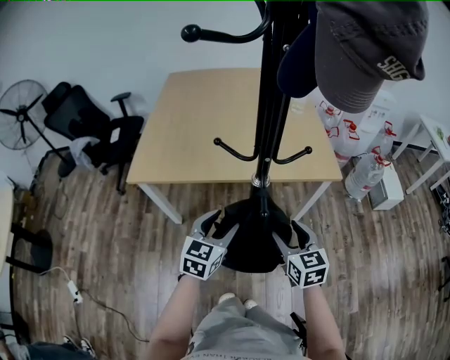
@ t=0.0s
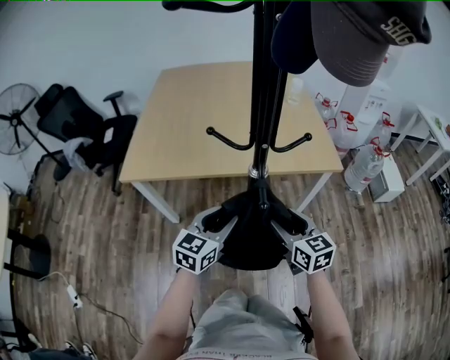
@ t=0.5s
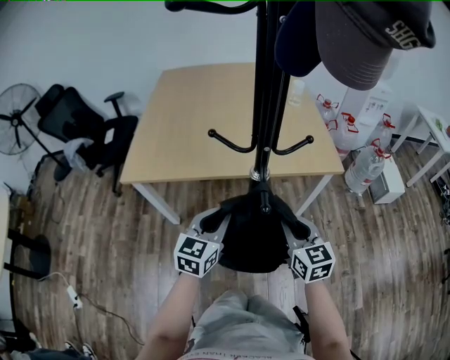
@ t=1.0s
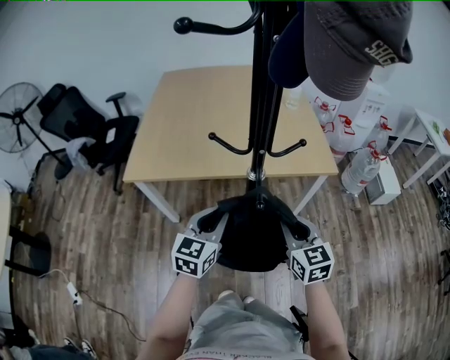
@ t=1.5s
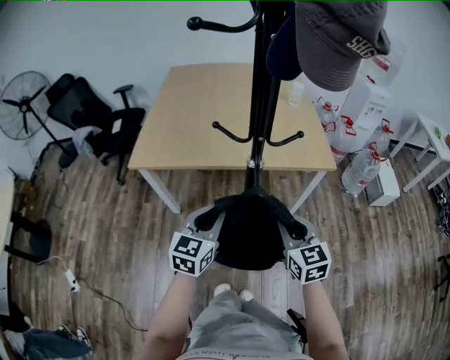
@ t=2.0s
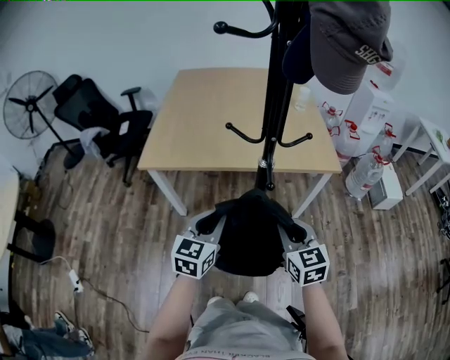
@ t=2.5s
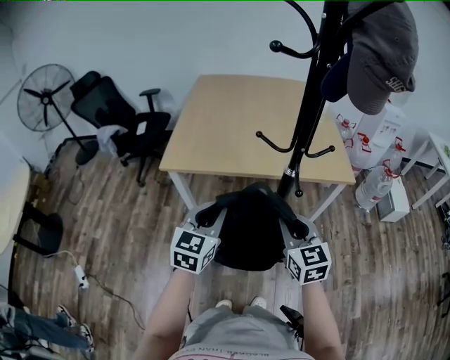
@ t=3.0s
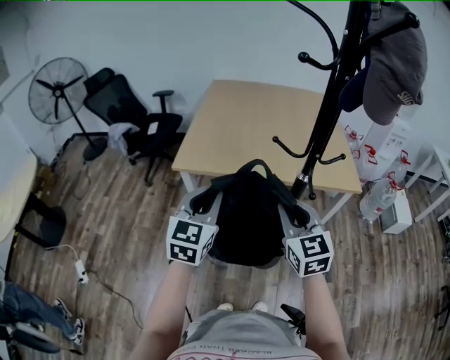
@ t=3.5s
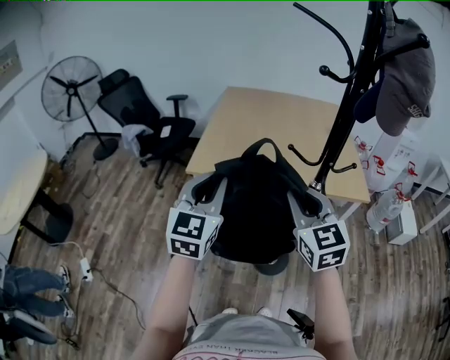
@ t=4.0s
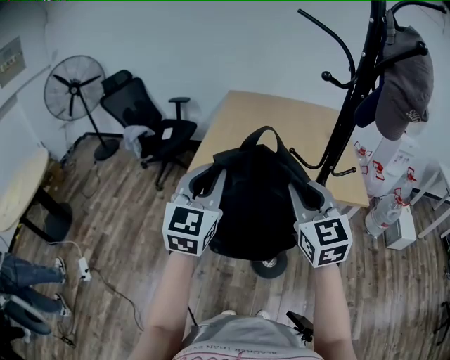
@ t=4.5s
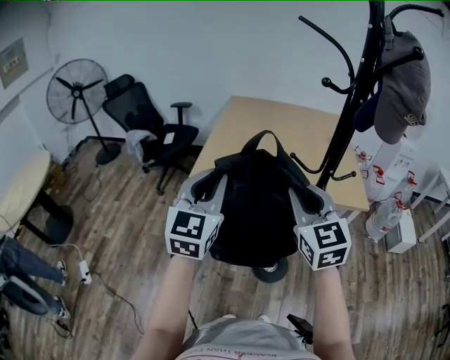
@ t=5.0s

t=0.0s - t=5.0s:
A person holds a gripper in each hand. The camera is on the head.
t=0.0s - t=2.5s: Both grippers travel together backward, roughly 5 cm. The left gripper closes its fingers, while the right gripper closes its fingers.
t=2.5s - t=5.0s: The two grippers go approximately 25 cm upward and to the left. The right gripper rotates some 20 degrees. Meanwhile the left gripper changes its angle by some 30 degrees.

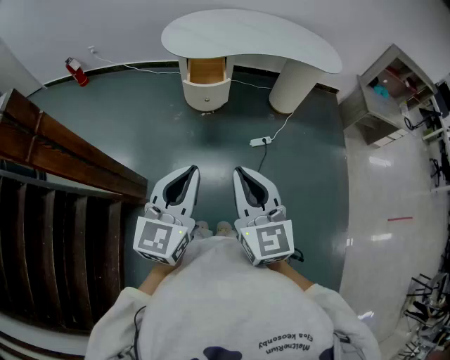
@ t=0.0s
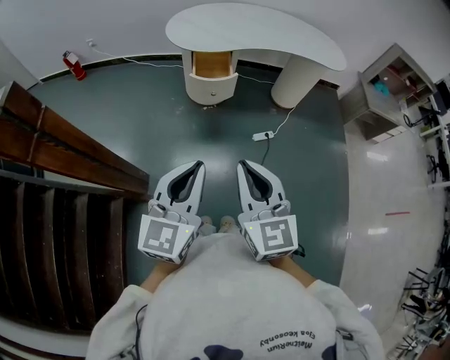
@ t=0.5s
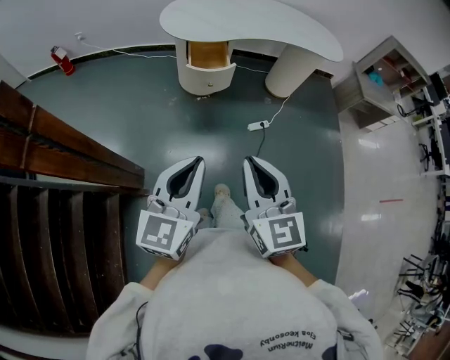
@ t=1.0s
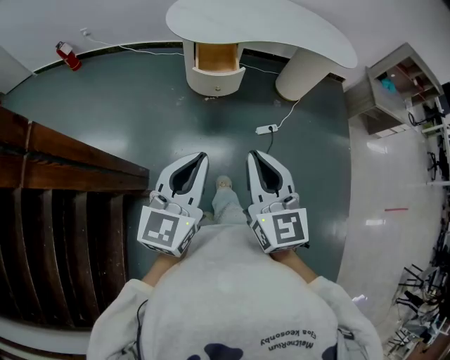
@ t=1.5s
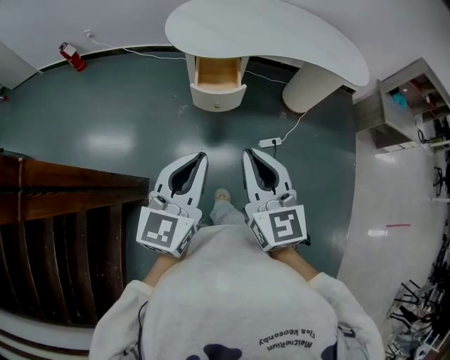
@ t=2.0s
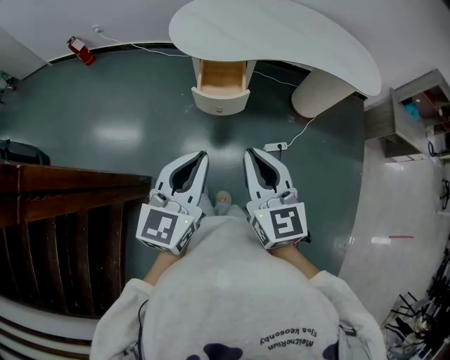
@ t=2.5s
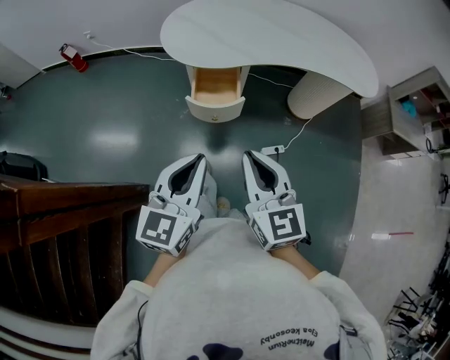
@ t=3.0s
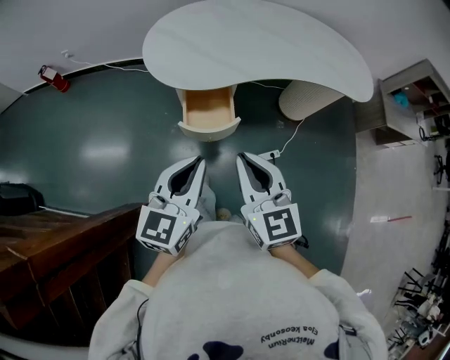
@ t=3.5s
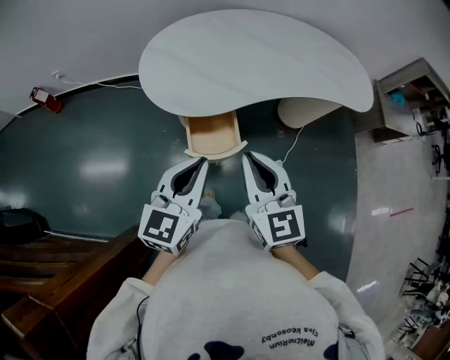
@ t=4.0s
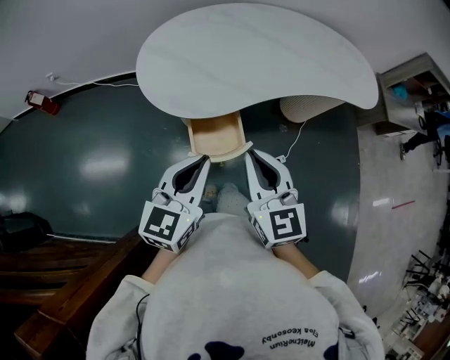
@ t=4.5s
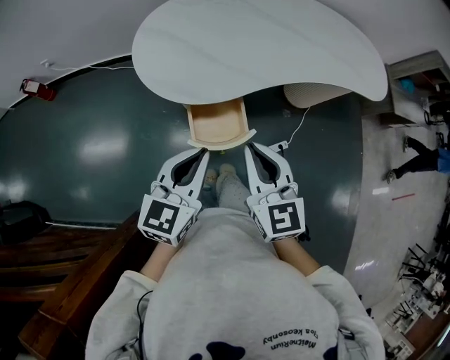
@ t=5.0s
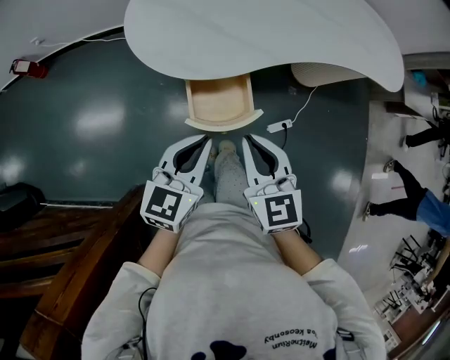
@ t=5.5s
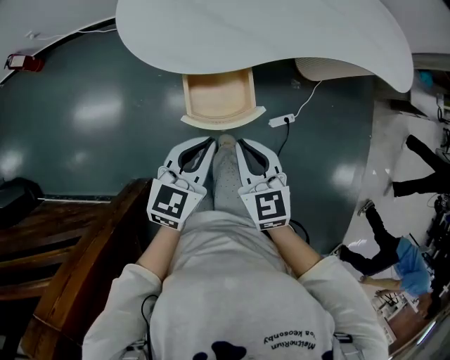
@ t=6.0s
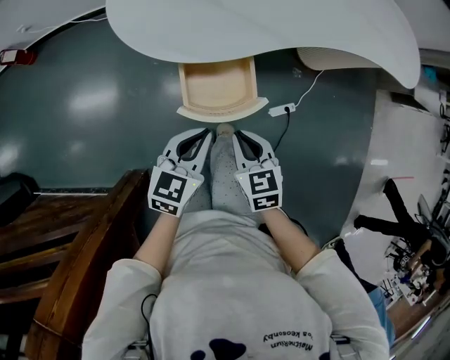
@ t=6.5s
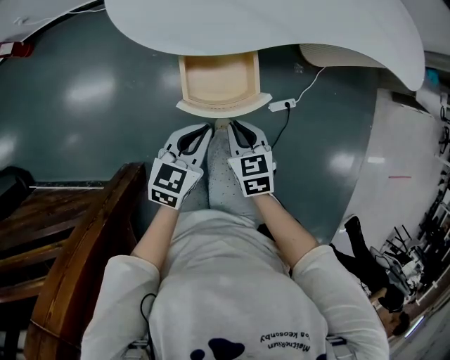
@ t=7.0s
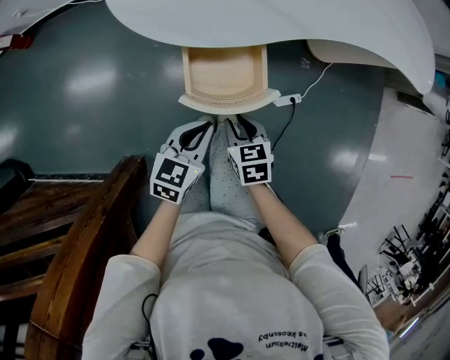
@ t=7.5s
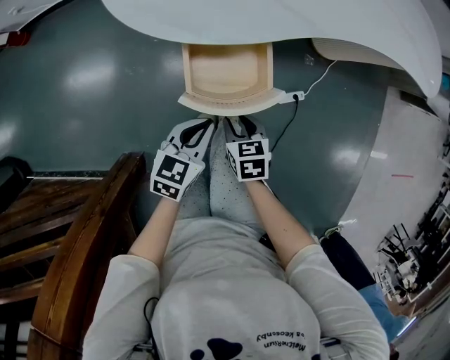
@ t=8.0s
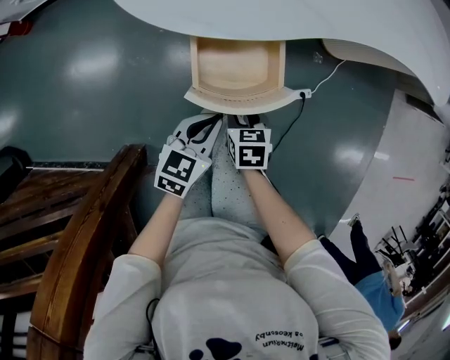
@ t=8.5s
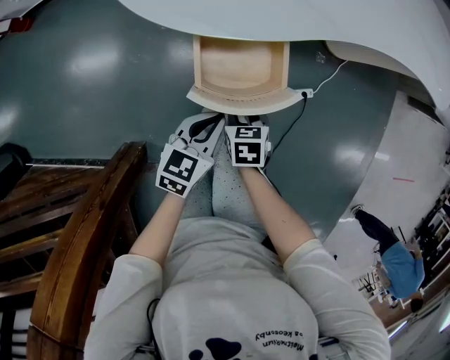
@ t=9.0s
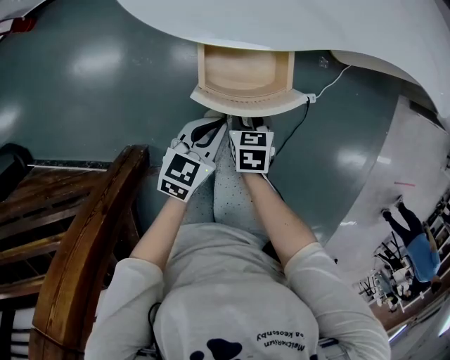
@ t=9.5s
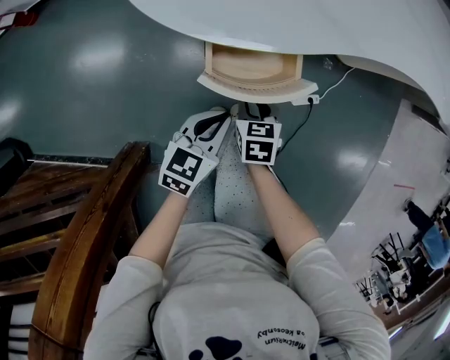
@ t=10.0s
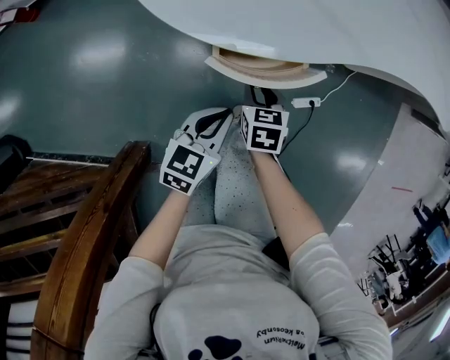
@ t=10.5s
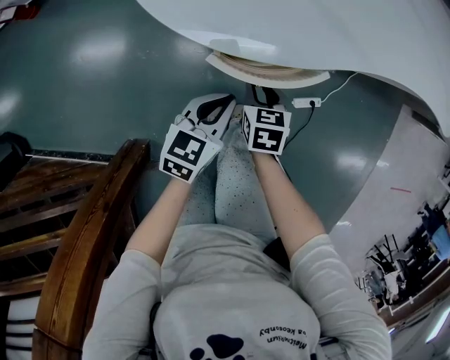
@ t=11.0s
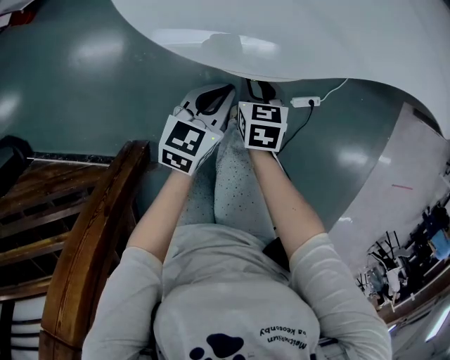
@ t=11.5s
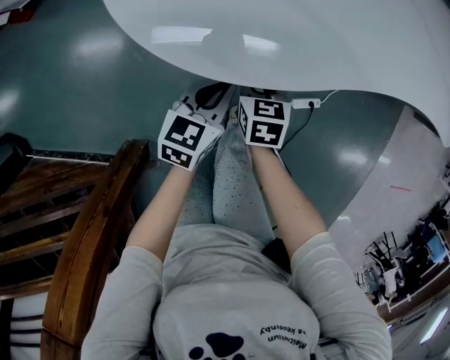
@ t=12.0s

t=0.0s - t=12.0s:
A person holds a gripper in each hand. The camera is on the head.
t=0.0s - t=2.0s: Both grippers move forward, approximately 20 cm.
t=2.0s - t=4.0s: Both grippers move forward, roughly 30 cm.
t=4.0s - t=6.0s: The two grippers go roughly 20 cm downward. The right gripper swivels about 20 degrees.
t=6.0s - t=8.0s: The two grippers go approximately 20 cm downward. The right gripper swivels roughly 30 degrees, and opens its fingers.
t=8.0s - t=10.0s: The right gripper travels forward by approximately 5 cm.
t=10.0s - t=12.0s: Both grippers travel together forward, about 10 cm.

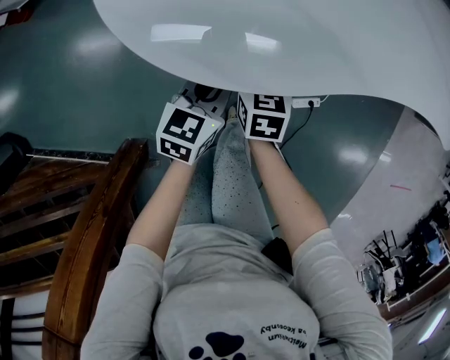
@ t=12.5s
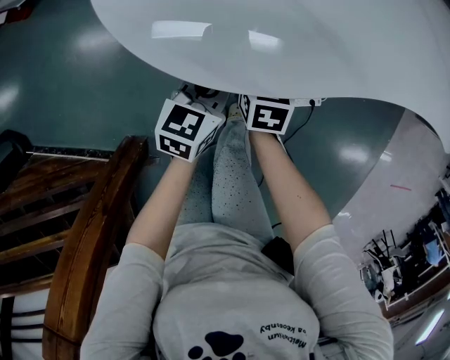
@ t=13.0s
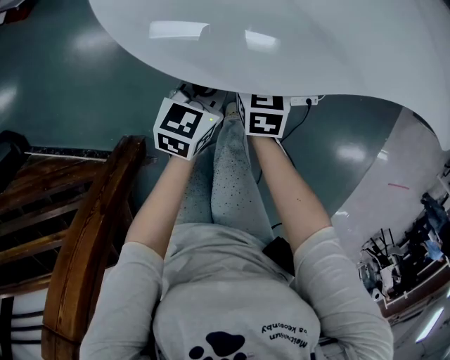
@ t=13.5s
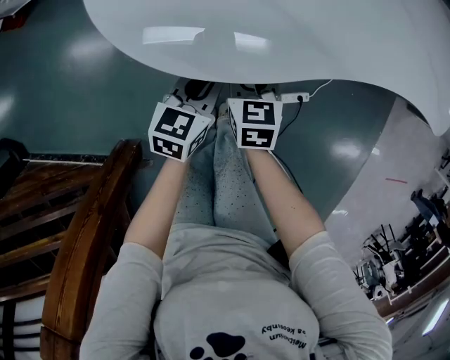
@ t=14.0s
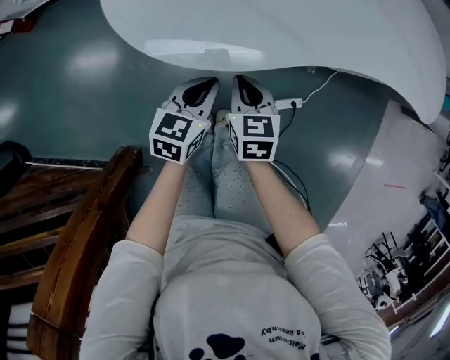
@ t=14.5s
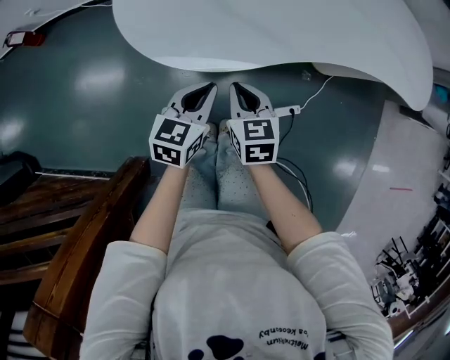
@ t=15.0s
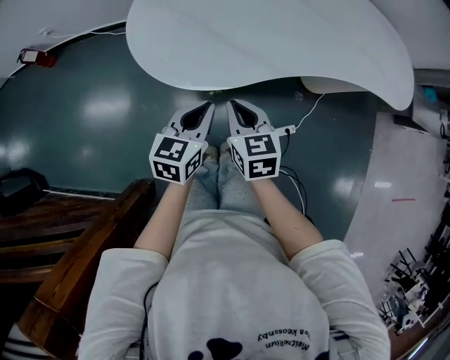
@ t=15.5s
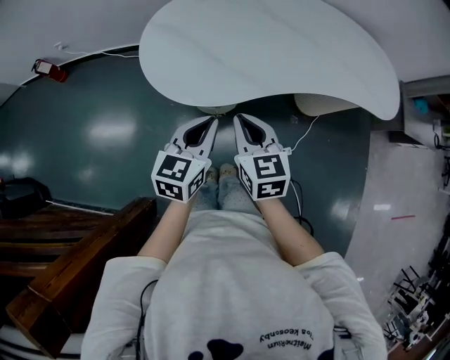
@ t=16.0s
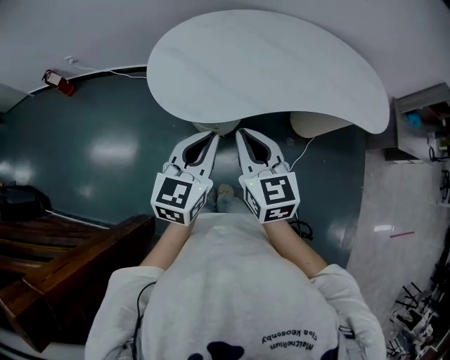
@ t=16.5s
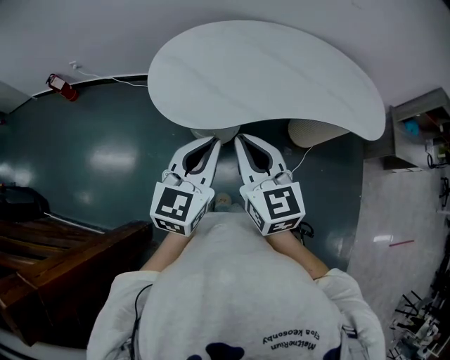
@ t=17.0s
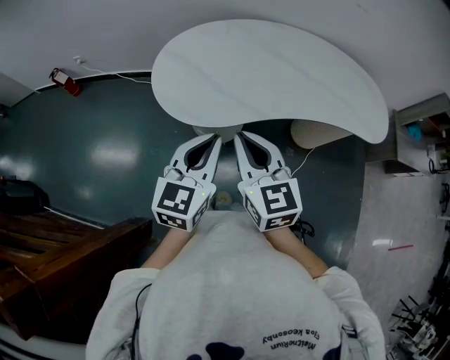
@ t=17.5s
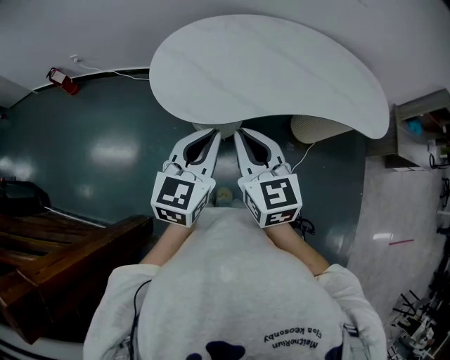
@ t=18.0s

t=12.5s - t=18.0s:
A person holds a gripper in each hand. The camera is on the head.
t=12.5s - t=14.5s: The left gripper heads upward, covering some 5 cm. The right gripper goes some 10 cm upward and backward, and closes.
t=14.5s - t=16.0s: The two grippers go about 25 cm upward.
t=16.0s - t=18.0s: The grippers both shift upward by about 10 cm.

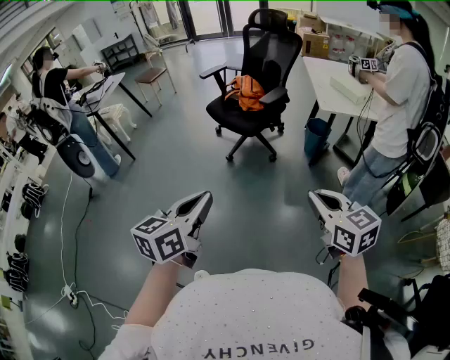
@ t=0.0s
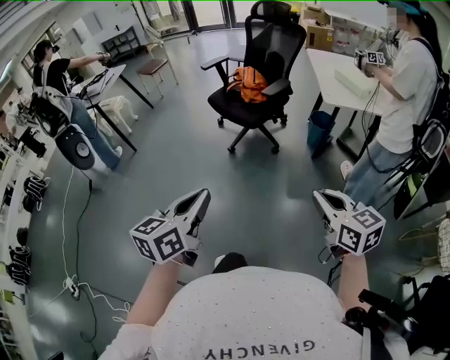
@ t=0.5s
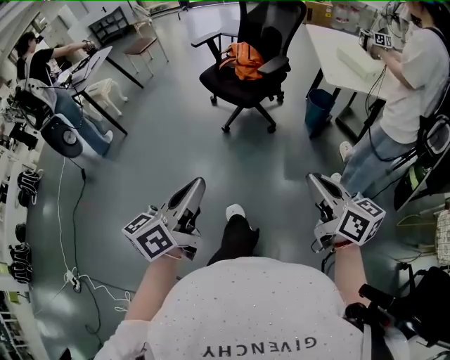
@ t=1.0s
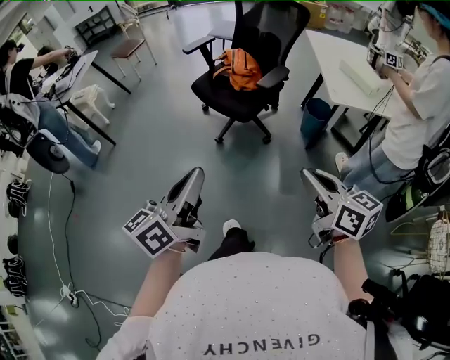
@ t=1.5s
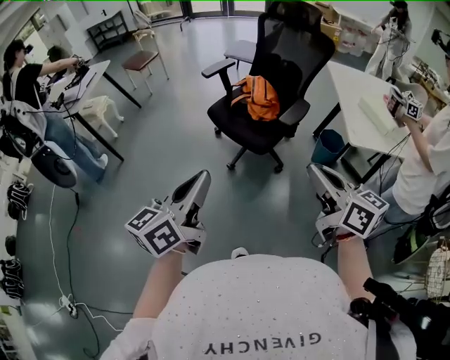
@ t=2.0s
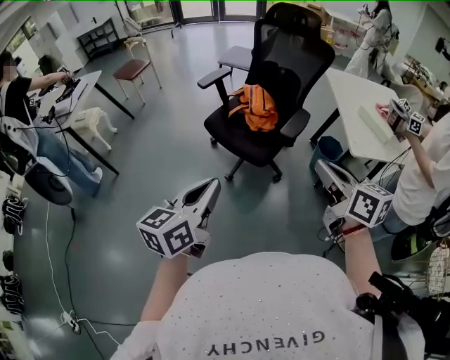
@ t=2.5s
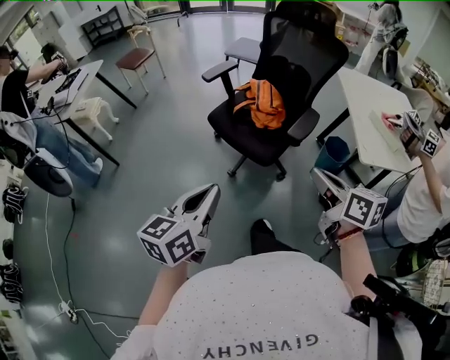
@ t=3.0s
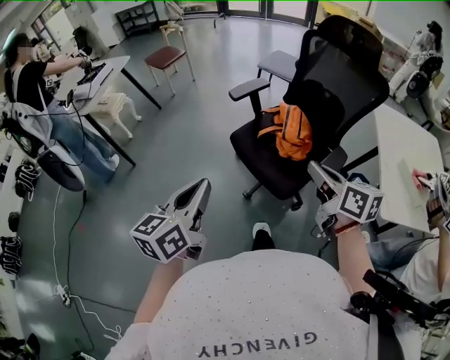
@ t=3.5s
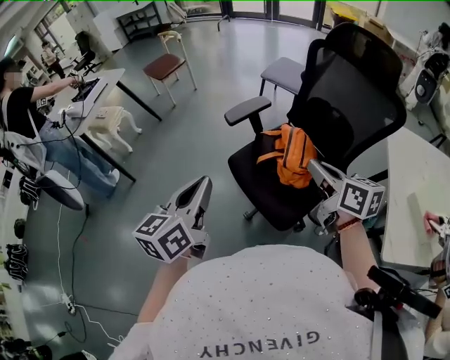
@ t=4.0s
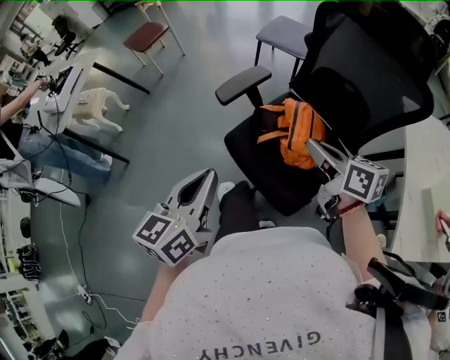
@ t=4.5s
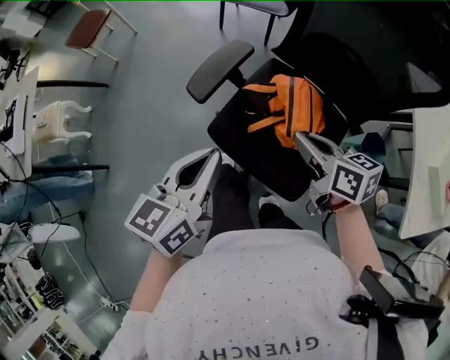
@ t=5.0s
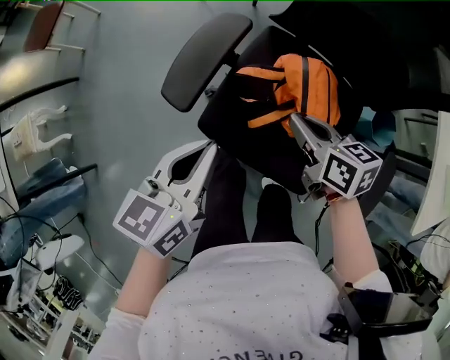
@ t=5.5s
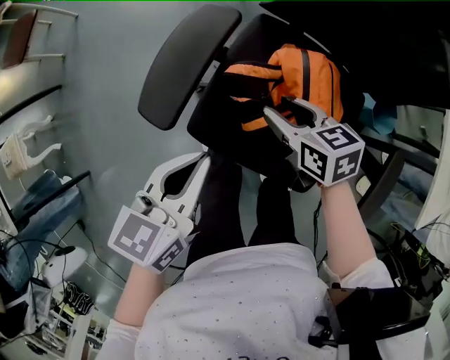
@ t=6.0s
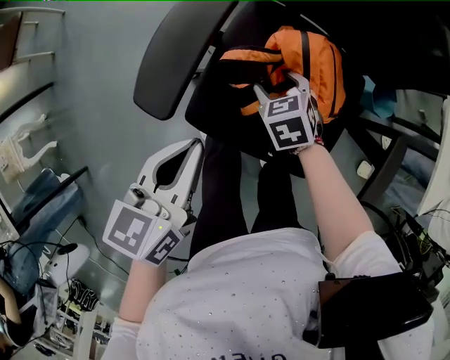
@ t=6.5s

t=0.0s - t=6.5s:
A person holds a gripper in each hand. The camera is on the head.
t=0.0s - t=2.0s: Both grippers move forward, approximately 35 cm. The right gripper swivels some 20 degrees.
t=2.0s - t=4.5s: The two grippers travel together, forward, some 50 cm. The right gripper swivels approximately 20 degrees.
t=4.5s - t=6.5s: The left gripper shifts by roughly 30 cm, and turns by approximately 40 degrees. The right gripper goes some 35 cm downward, angles its fingers downward, by some 50 degrees, and opens up.
